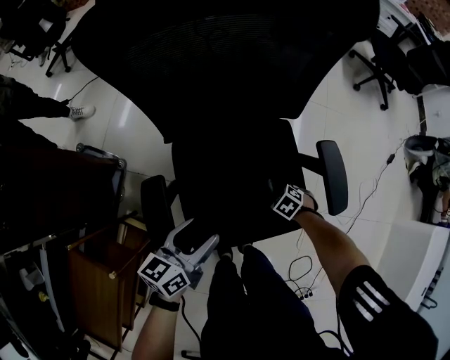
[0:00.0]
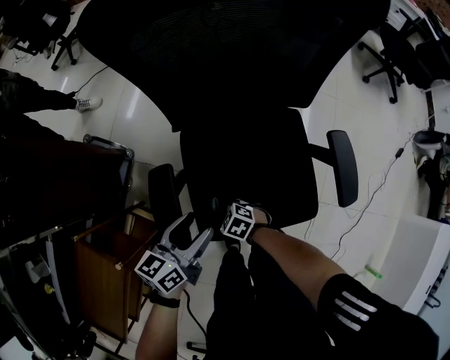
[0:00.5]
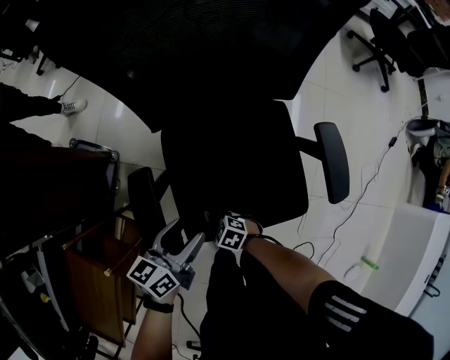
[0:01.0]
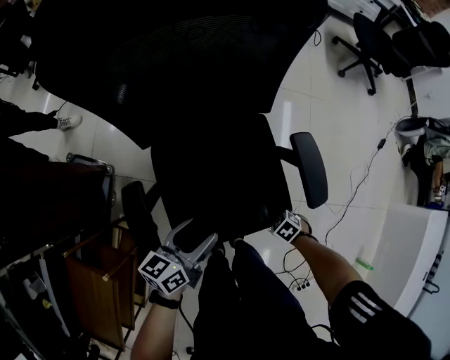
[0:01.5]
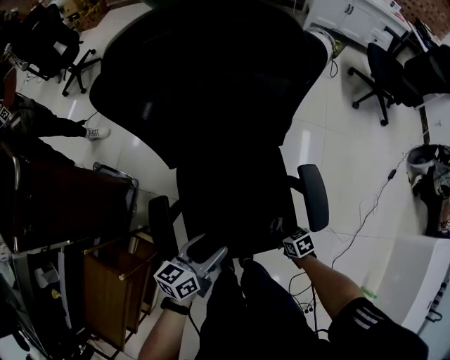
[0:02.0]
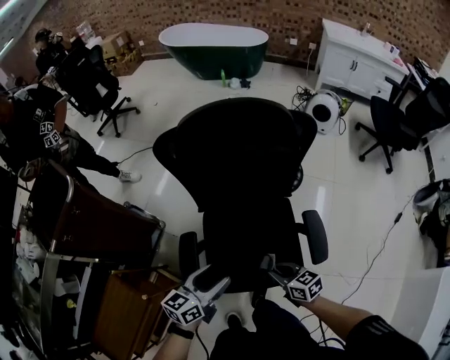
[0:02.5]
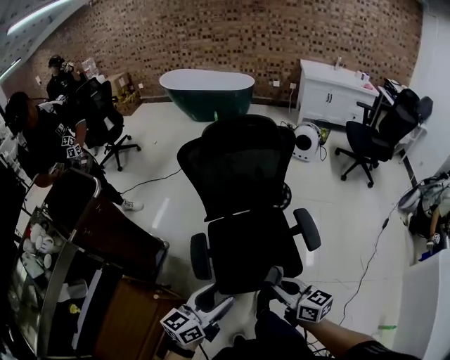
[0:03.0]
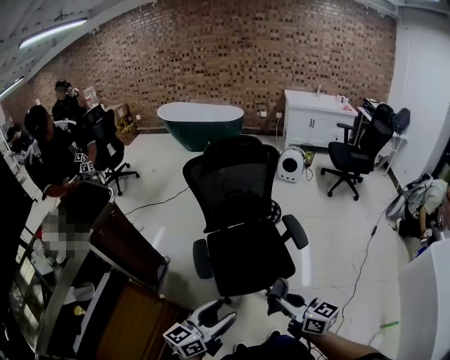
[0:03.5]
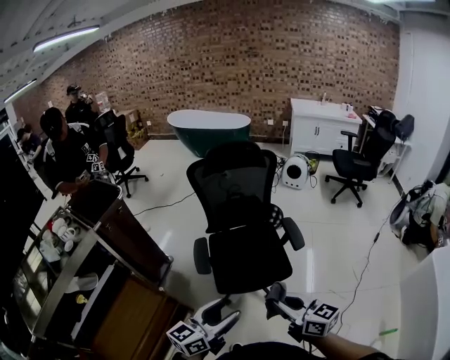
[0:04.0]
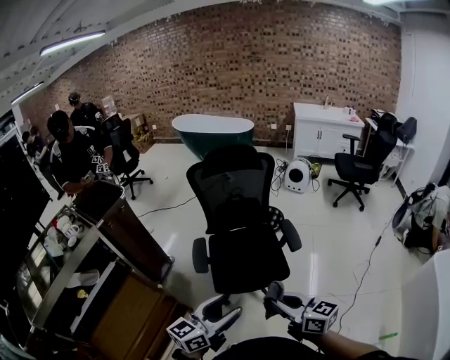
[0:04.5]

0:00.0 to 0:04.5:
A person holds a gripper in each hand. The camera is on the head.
0:00.0 to 0:02.0: The right gripper rotates roughly 40 degrees; the left gripper ends up about 10 cm from where it was.
0:02.0 to 0:04.5: The right gripper travels upward and backward by roughly 60 cm, and angles its fingers upward, by about 60 degrees. Meanwhile the left gripper is displaced backward and upward by roughly 50 cm, and swivels roughly 30 degrees.

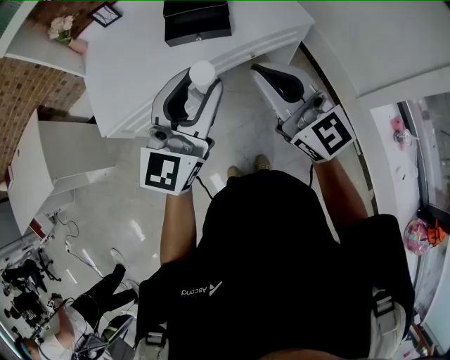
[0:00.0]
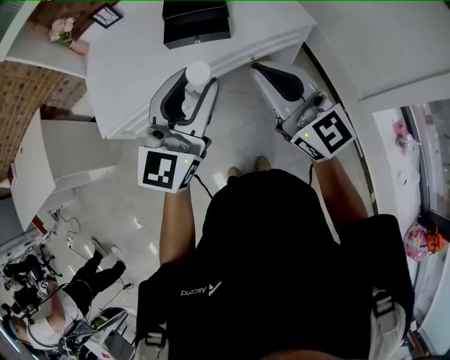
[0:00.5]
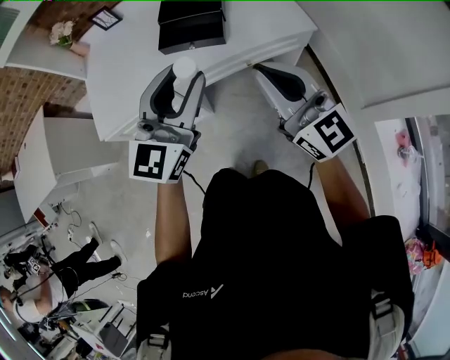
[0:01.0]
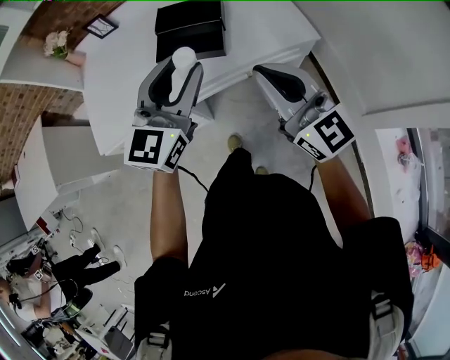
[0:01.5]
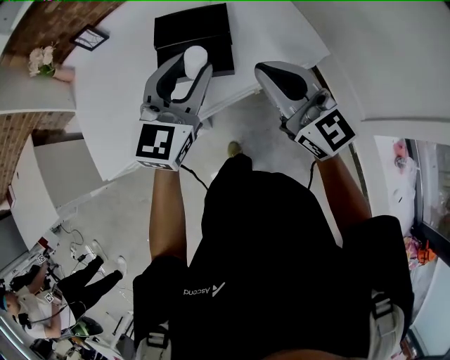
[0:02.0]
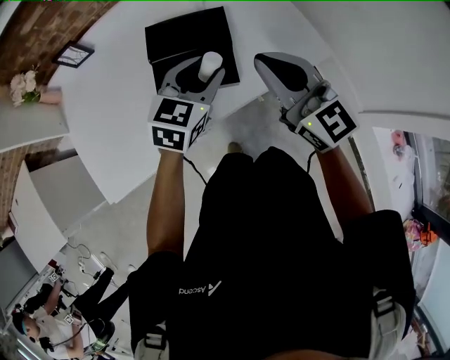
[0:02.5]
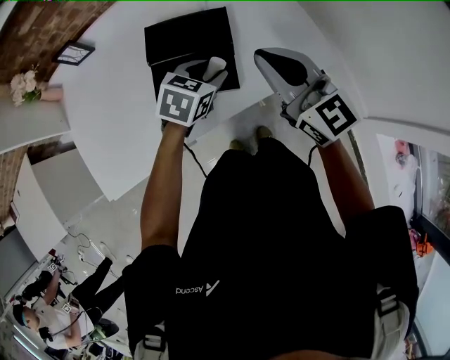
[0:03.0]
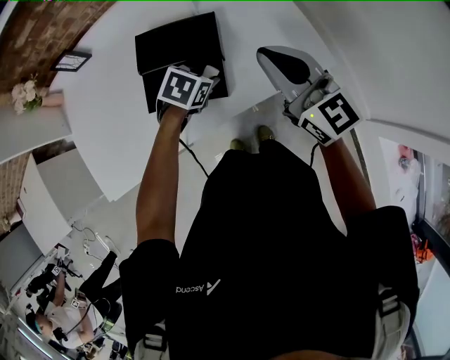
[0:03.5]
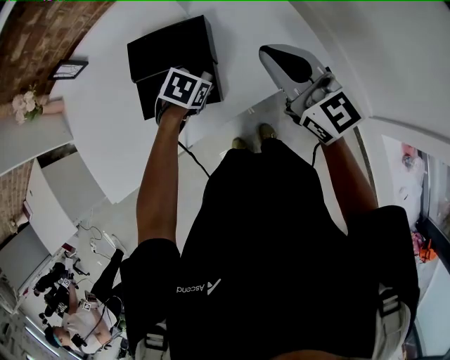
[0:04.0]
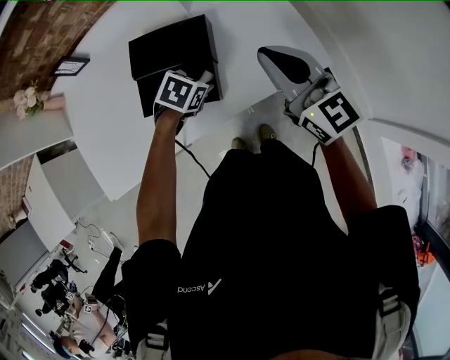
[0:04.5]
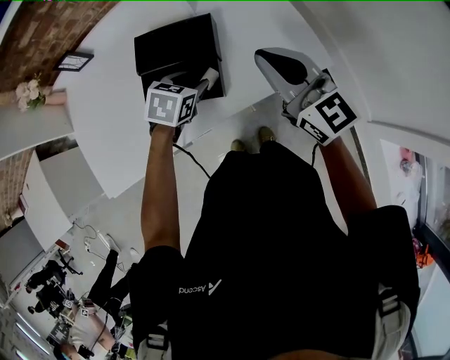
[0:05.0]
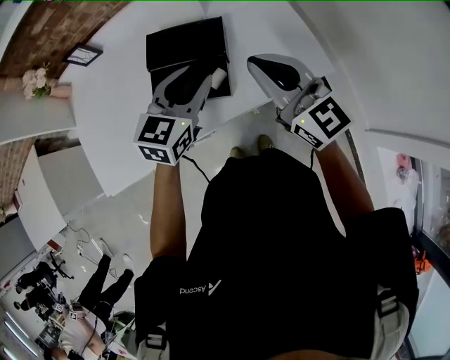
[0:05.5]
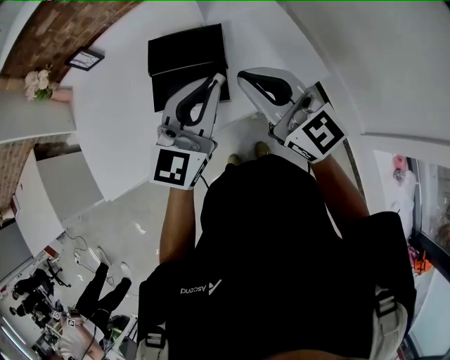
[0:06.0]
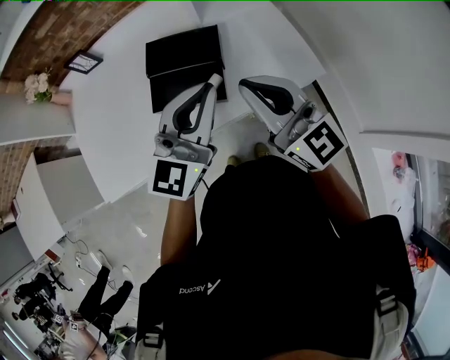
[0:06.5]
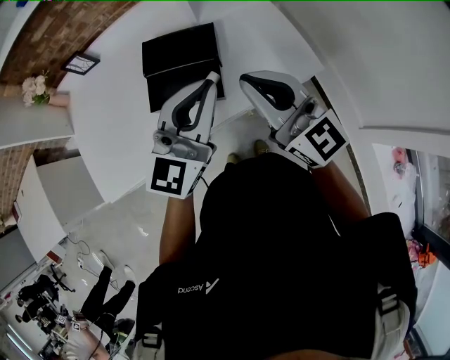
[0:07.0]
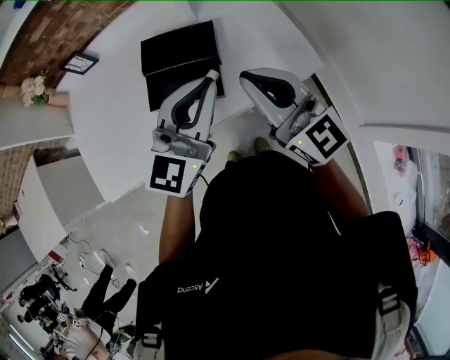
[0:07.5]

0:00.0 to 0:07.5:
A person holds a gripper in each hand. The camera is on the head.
0:00.0 to 0:02.0: The grippers both shift forward by some 25 cm.
0:02.0 to 0:04.0: The right gripper travels forward by about 15 cm; the left gripper goes about 30 cm downward and forward, and tilts its fingers some 60 degrees downward.
0:04.0 to 0:05.5: The left gripper travels upward by approximately 20 cm, and points its fingers some 50 degrees further upward; the right gripper moves backward and to the left, roughly 10 cm.
0:05.5 to 0:07.5: The right gripper is displaced backward by approximately 5 cm; the left gripper heads upward and backward, covering some 15 cm, rotates approximately 30 degrees, and closes its fingers.

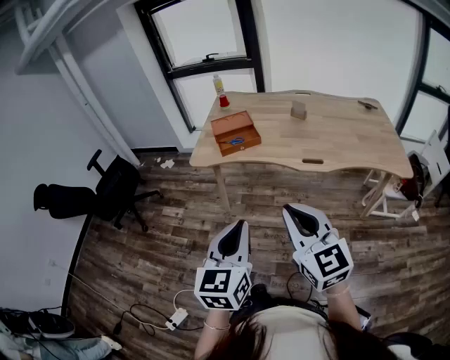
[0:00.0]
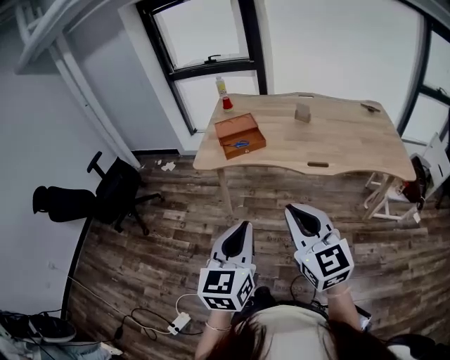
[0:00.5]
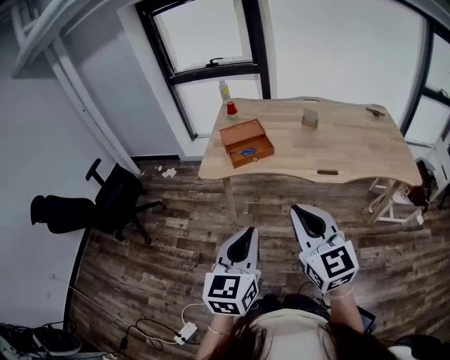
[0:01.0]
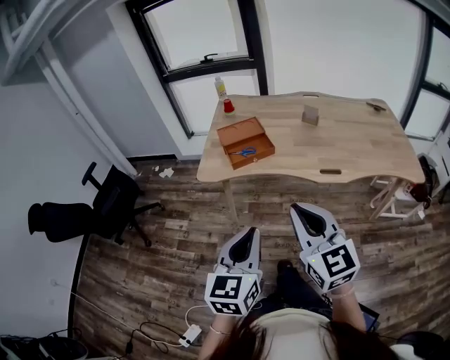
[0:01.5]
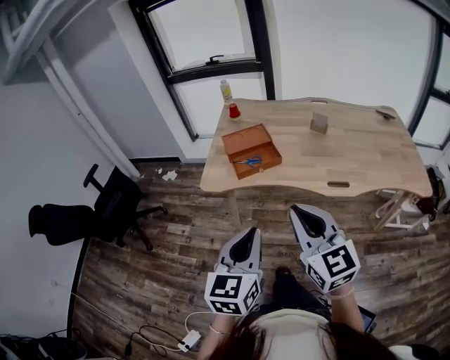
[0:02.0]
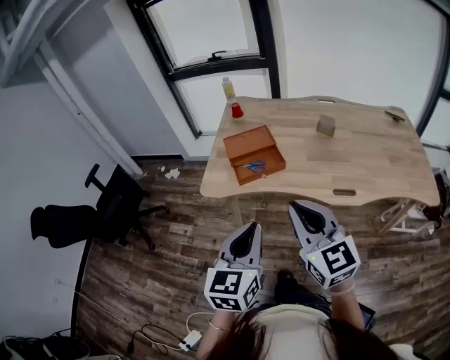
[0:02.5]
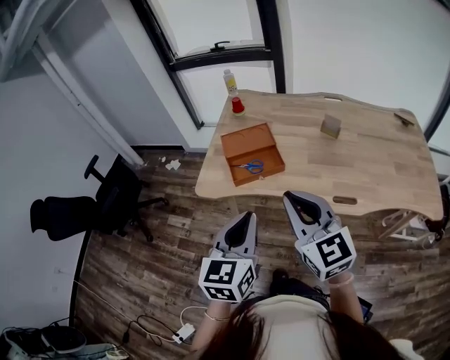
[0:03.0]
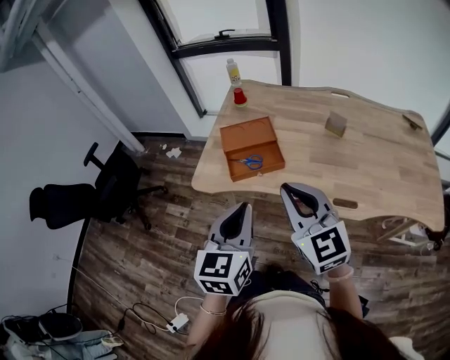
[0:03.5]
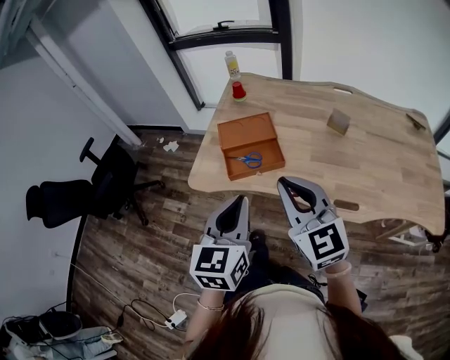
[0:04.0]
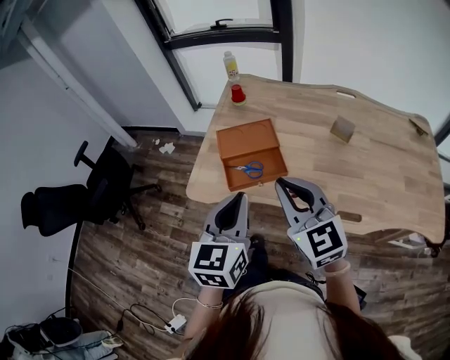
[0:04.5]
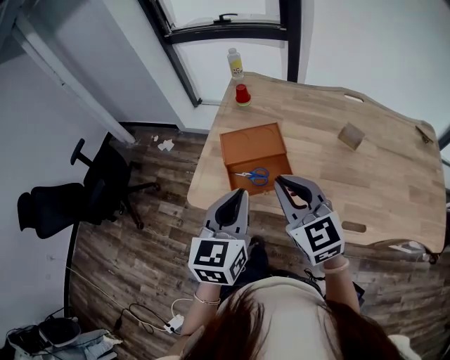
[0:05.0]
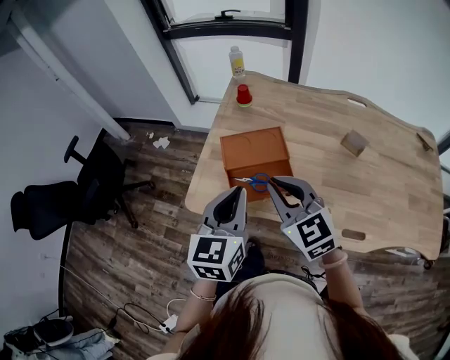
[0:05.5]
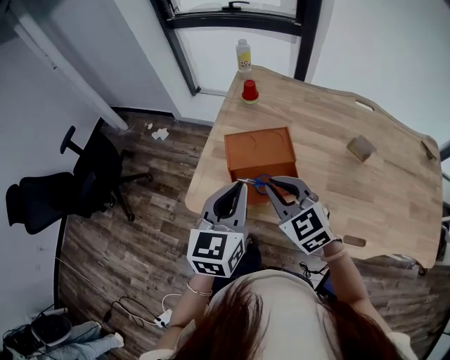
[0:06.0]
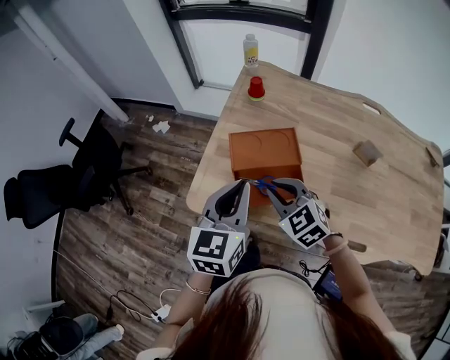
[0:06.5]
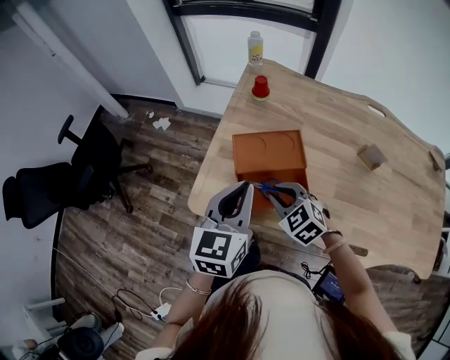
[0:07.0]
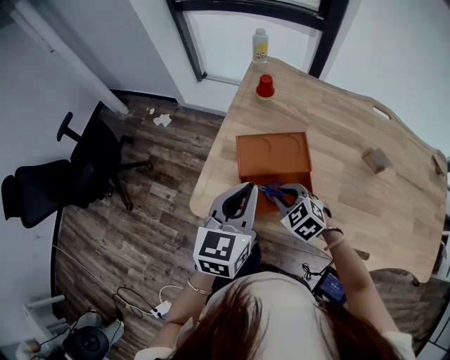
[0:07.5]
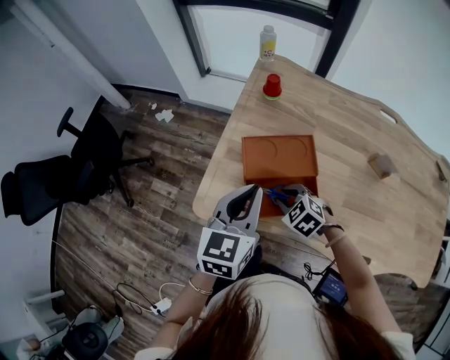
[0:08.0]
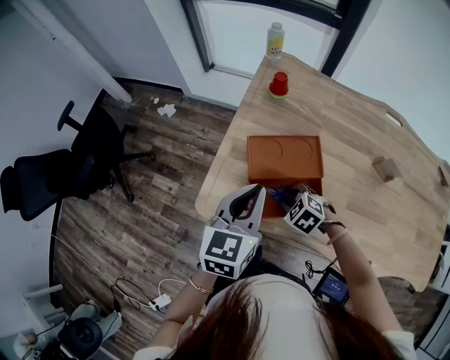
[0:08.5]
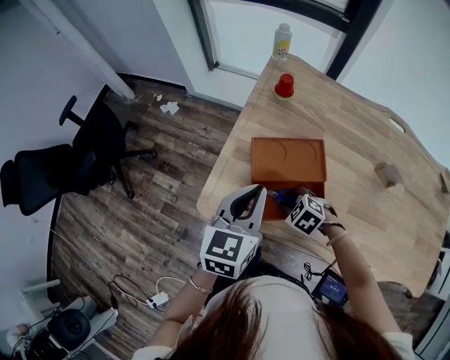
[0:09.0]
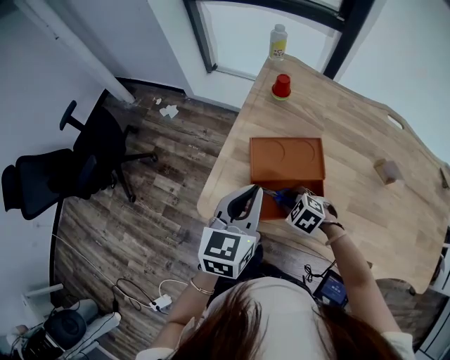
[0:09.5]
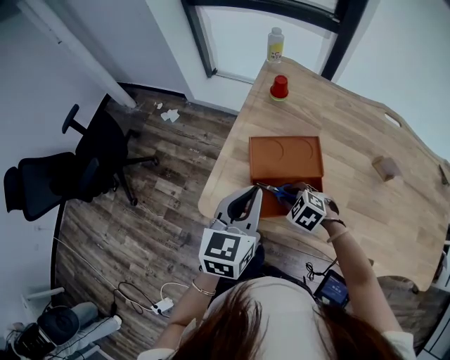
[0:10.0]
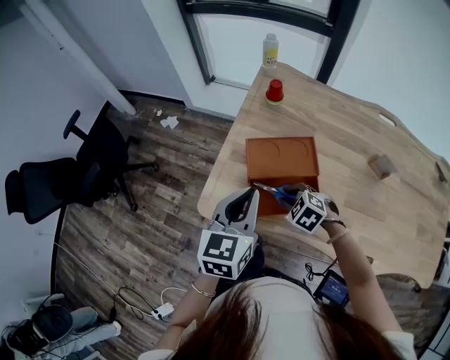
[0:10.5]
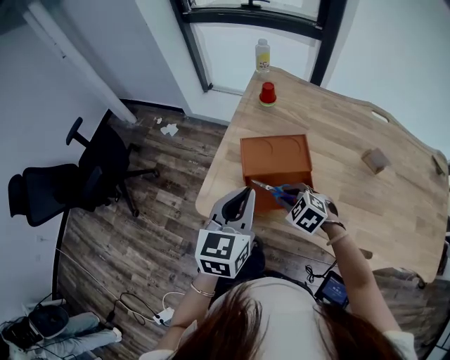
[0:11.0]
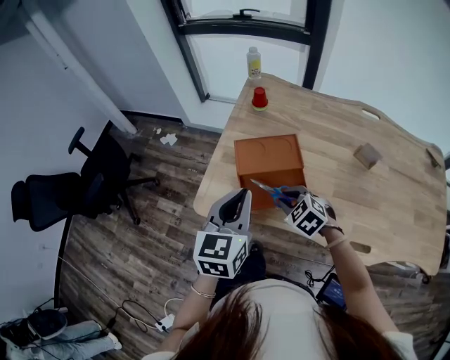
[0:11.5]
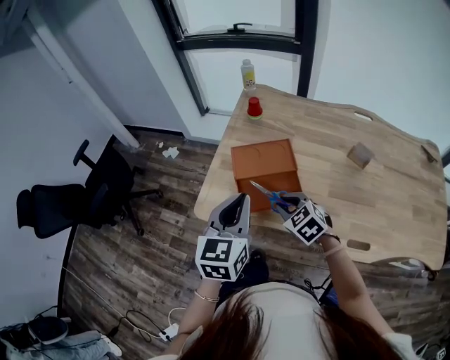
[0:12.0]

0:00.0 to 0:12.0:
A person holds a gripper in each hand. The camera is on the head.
0:00.0 to 0:02.0: Both grippers move forward, approximately 15 cm.
0:02.0 to 0:04.0: Both grippers move forward, about 20 cm.
0:04.0 to 0:06.0: The right gripper is displaced forward and downward by roughly 25 cm, and turns by some 20 degrees. The left gripper goes some 20 cm forward.
0:06.0 to 0:08.0: The right gripper travels downward by roughly 20 cm, and tips its fingers downward by roughly 30 degrees. Meanwhile the left gripper travels forward by approximately 5 cm.
0:08.0 to 0:10.0: There are only small adjustments of the grippers.
0:10.0 to 0:12.0: The right gripper moves upward and backward, roughly 10 cm, and rotates about 30 degrees. The left gripper goes some 10 cm backward and upward.

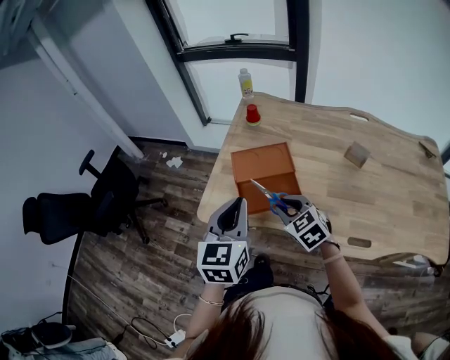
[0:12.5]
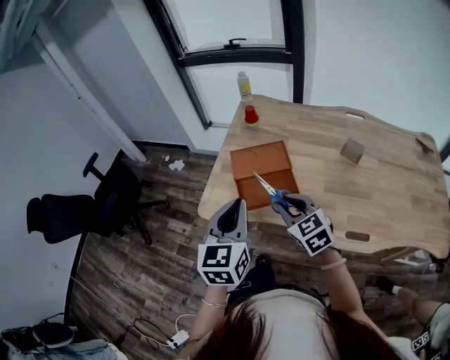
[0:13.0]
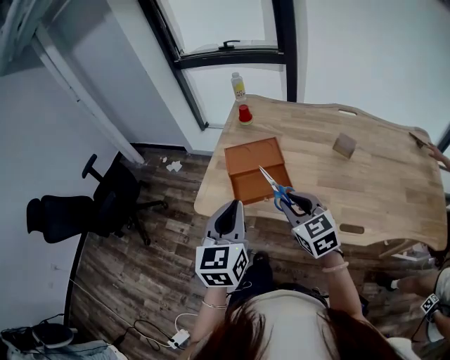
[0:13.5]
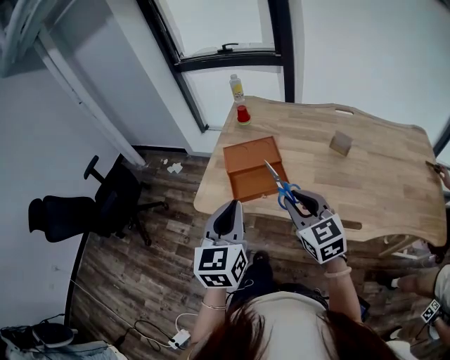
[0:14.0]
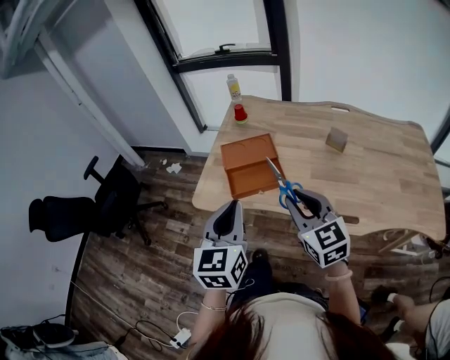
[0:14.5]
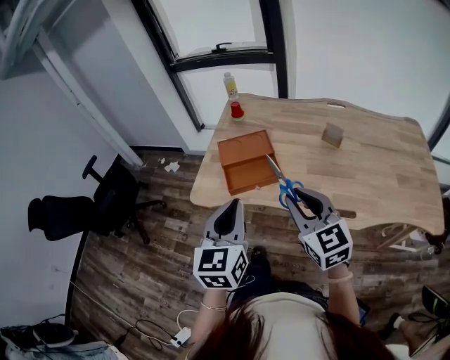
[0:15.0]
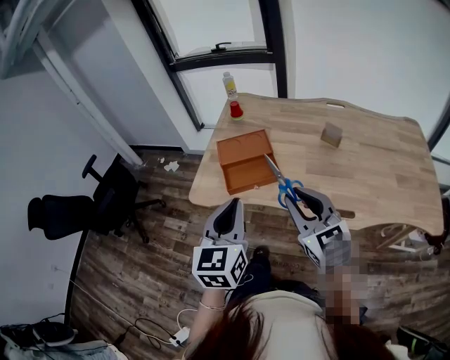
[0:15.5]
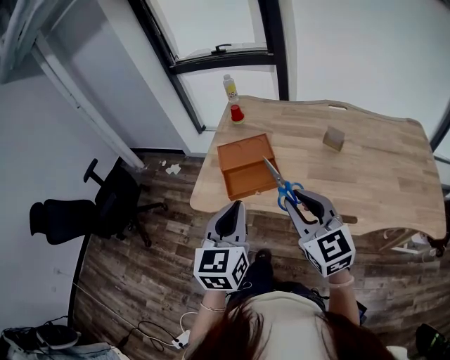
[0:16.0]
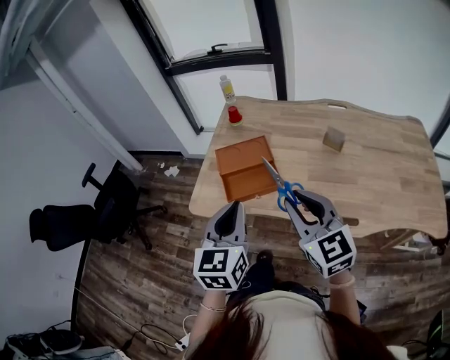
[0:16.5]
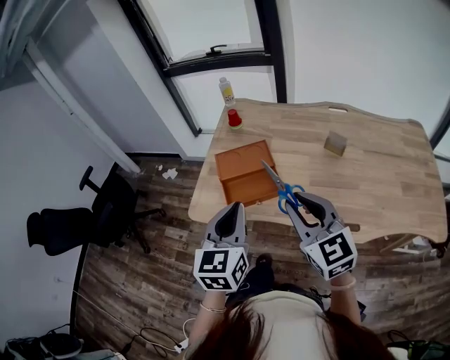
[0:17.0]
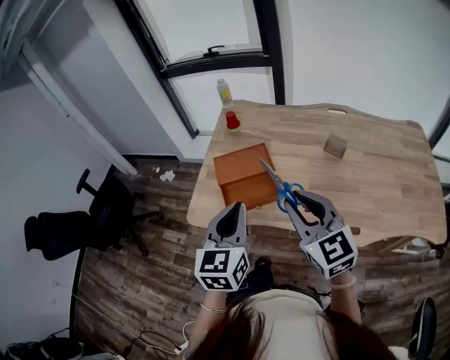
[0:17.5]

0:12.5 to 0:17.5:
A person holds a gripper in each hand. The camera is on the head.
0:12.5 to 0:15.0: The right gripper goes roughly 25 cm backward and upward, and turns by approximately 30 degrees; the left gripper heads backward, covering approximately 15 cm.
0:15.0 to 0:17.5: Both grippers move forward, about 10 cm.
